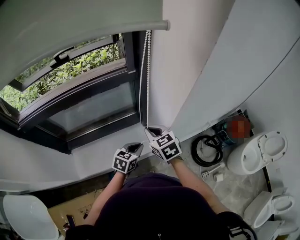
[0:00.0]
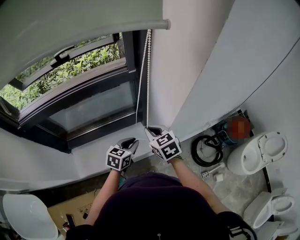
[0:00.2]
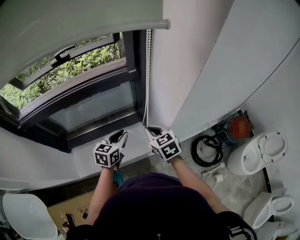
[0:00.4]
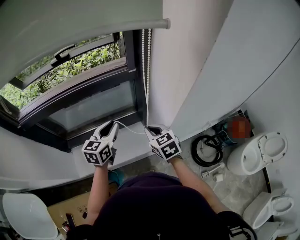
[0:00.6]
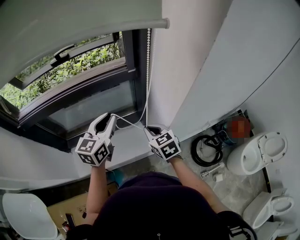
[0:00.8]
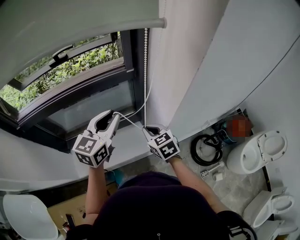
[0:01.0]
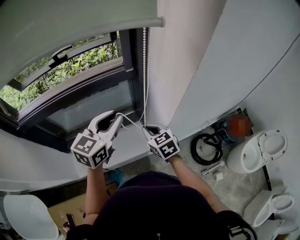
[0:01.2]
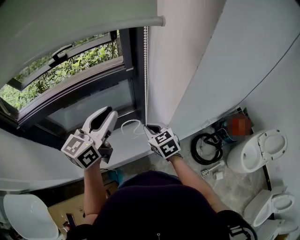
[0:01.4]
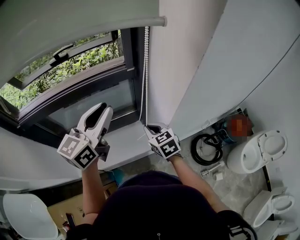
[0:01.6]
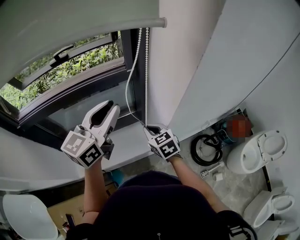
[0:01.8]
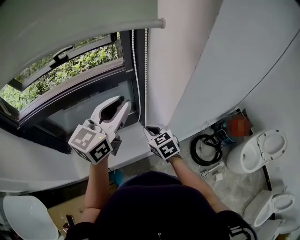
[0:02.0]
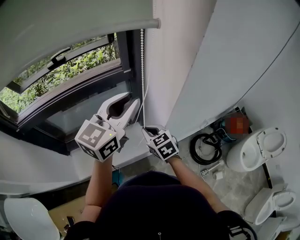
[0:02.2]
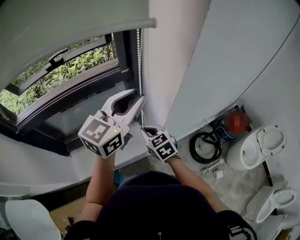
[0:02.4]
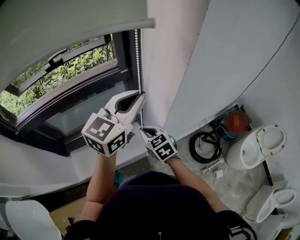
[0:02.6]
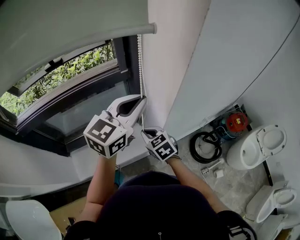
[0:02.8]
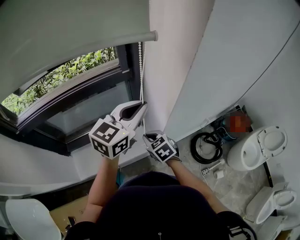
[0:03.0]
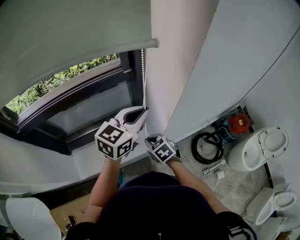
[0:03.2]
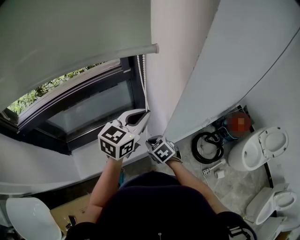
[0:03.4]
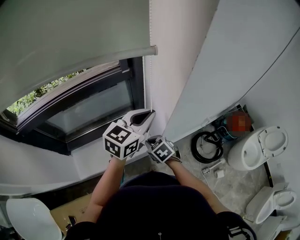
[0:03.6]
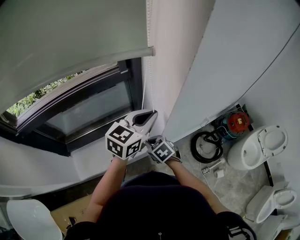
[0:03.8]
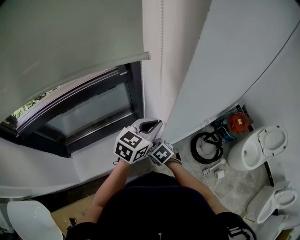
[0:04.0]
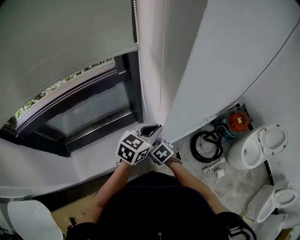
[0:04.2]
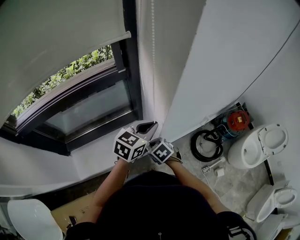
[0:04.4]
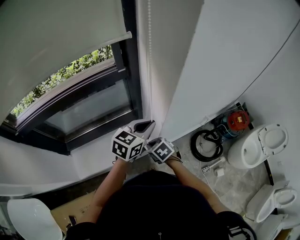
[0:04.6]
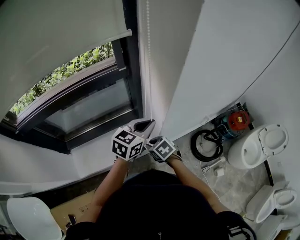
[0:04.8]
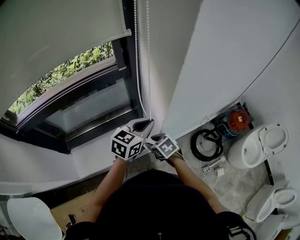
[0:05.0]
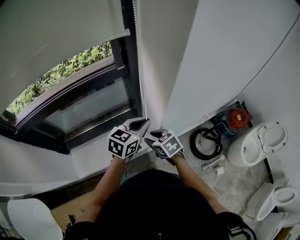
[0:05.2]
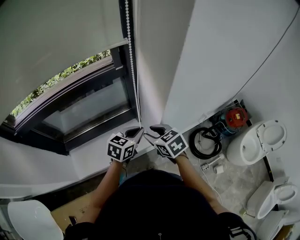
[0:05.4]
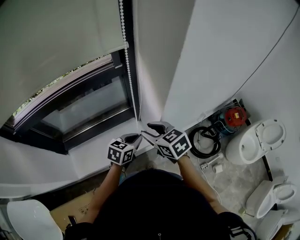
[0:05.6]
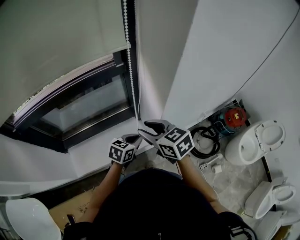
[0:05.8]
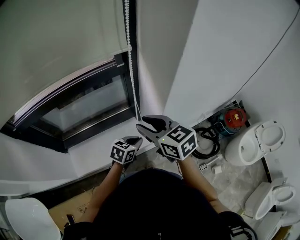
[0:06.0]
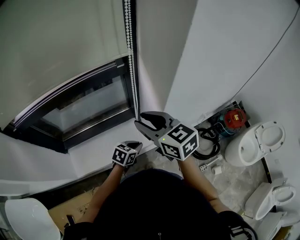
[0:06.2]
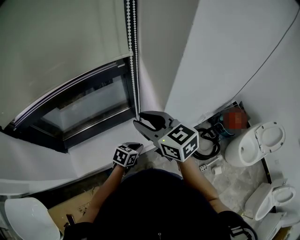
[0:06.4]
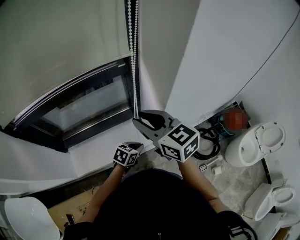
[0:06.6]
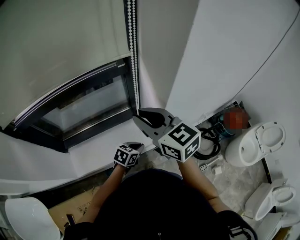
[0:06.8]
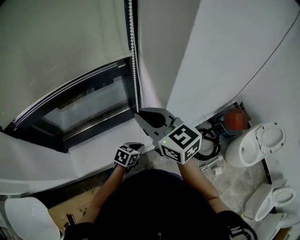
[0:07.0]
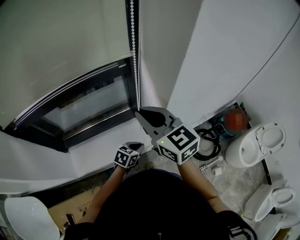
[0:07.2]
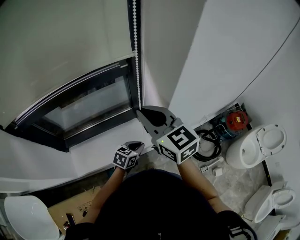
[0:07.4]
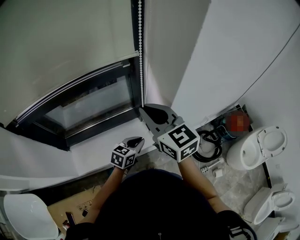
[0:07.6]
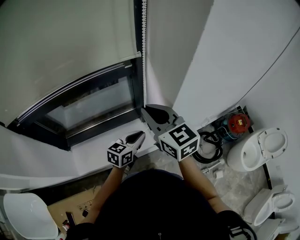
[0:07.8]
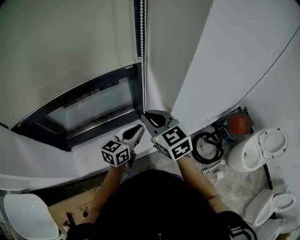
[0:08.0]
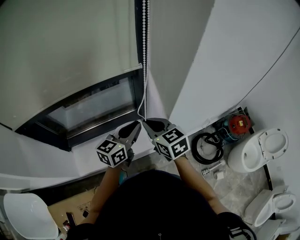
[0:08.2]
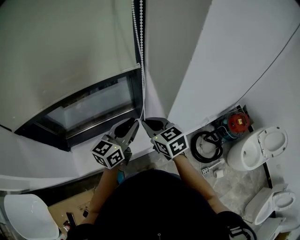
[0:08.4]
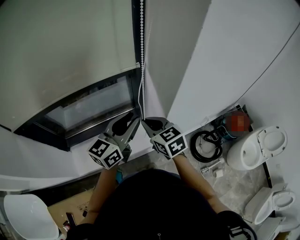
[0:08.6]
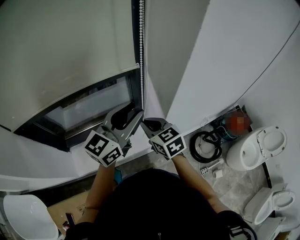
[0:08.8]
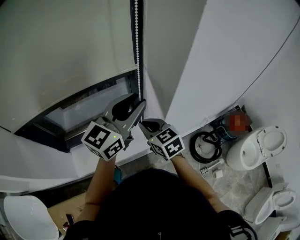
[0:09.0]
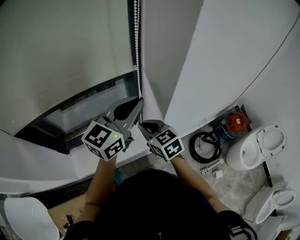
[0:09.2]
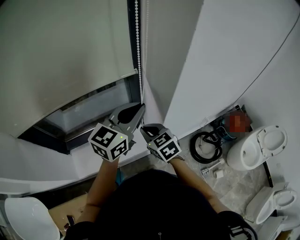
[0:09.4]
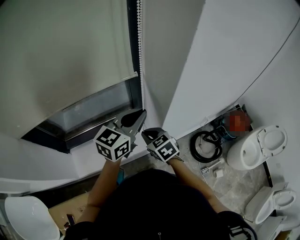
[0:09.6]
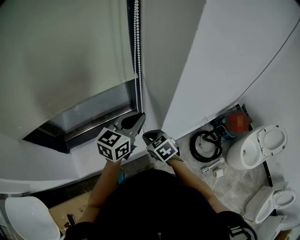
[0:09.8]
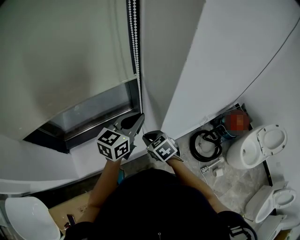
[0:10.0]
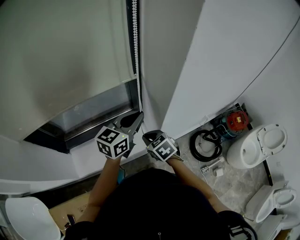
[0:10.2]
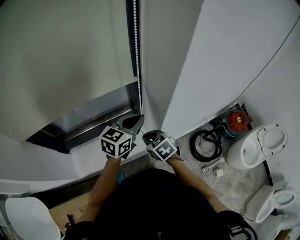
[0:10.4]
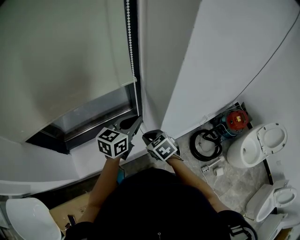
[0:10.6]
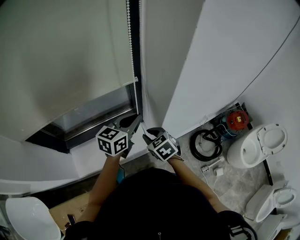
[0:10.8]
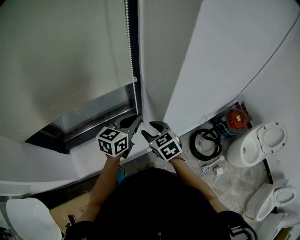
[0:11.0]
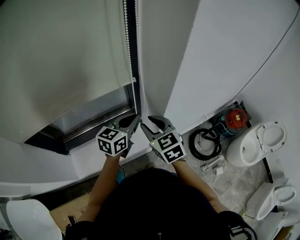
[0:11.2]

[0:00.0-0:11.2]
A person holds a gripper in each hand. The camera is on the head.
0:00.0 to 0:01.6: The left gripper goes approximately 30 cm upward, and tilts its fingers about 40 degrees upward.
0:01.6 to 0:03.2: The right gripper shifts approximately 10 cm downward, while the left gripper moves to the right and downward, about 15 cm, and changes its angle by some 20 degrees.
0:03.2 to 0:04.8: The left gripper is displaced downward by about 10 cm; the right gripper ends up approximately 5 cm from where it was.
0:04.8 to 0:06.4: The right gripper travels upward by about 30 cm, points its fingers roughly 40 degrees further upward, and opens up. The left gripper shifts about 20 cm downward and backward, and rotates about 30 degrees.
0:06.4 to 0:08.0: The right gripper closes its fingers. Meanwhile the left gripper is displaced upward by approximately 15 cm, and tips its fingers upward by roughly 30 degrees.
0:08.0 to 0:09.6: The left gripper shifts about 10 cm upward, and opens, then closes once more. Meanwhile the right gripper heads downward, covering about 15 cm, and swivels about 20 degrees.
0:09.6 to 0:11.2: The left gripper travels downward by some 10 cm; the right gripper moves upward, roughly 10 cm, and opens up.

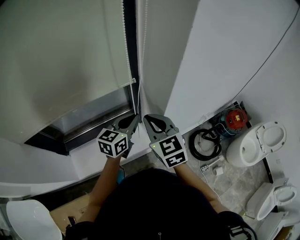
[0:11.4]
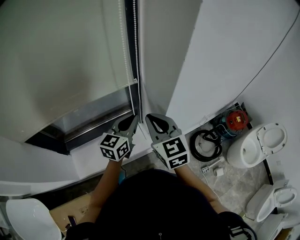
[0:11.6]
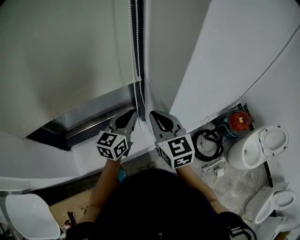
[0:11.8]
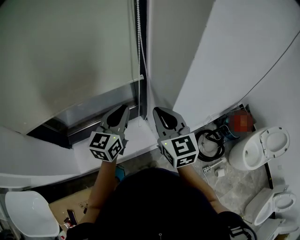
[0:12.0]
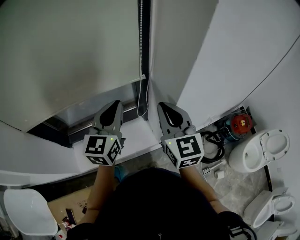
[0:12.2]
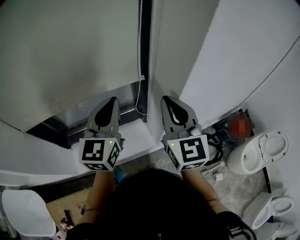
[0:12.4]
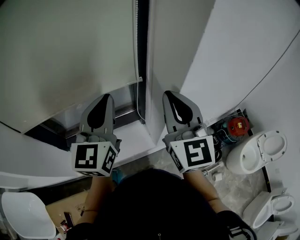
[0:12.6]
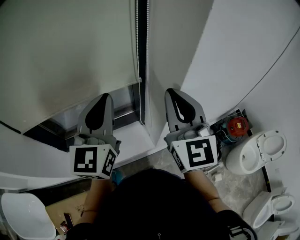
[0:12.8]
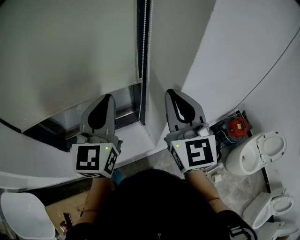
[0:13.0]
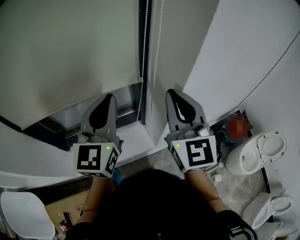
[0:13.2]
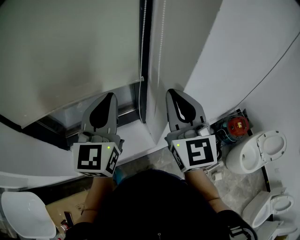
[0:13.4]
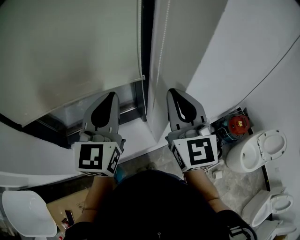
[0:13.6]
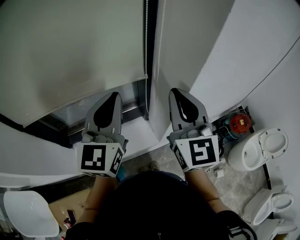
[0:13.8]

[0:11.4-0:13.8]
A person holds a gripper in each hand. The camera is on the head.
0:11.4 to 0:12.6: The right gripper heads upward, covering roughly 15 cm, and changes its angle by roughly 20 degrees. Meanwhile the left gripper heads upward and to the left, covering roughly 25 cm, and swivels about 40 degrees.
0:12.6 to 0:13.8: The grippers make only small movements.

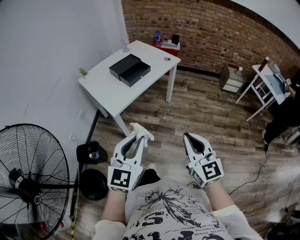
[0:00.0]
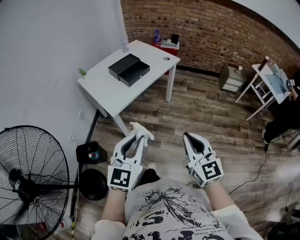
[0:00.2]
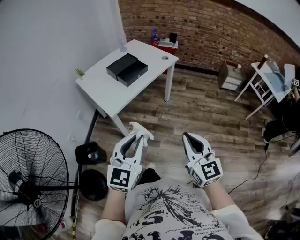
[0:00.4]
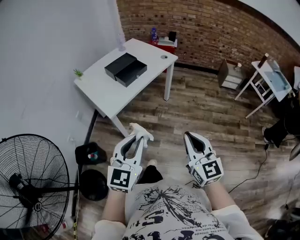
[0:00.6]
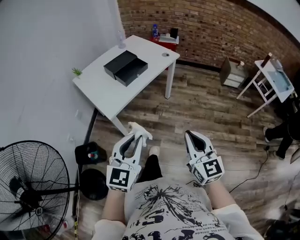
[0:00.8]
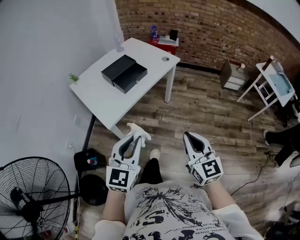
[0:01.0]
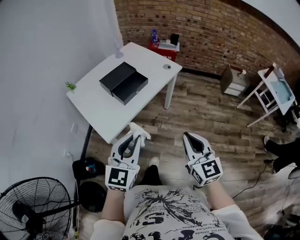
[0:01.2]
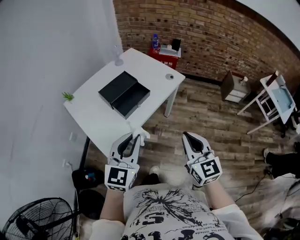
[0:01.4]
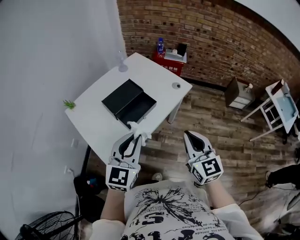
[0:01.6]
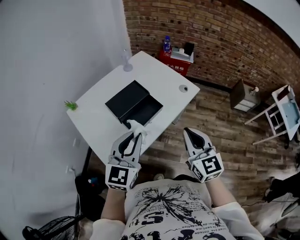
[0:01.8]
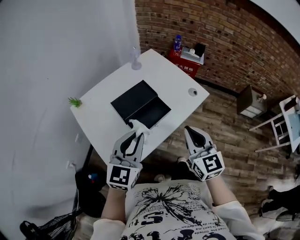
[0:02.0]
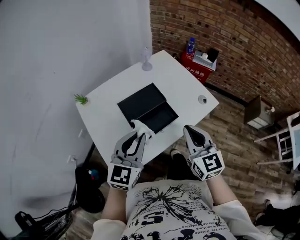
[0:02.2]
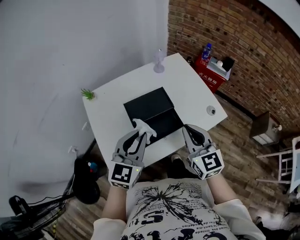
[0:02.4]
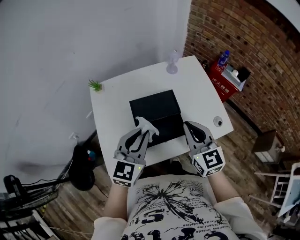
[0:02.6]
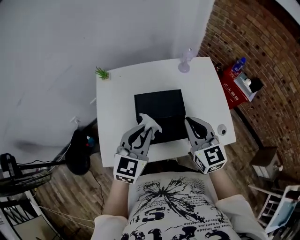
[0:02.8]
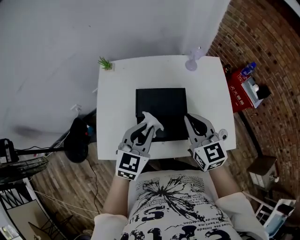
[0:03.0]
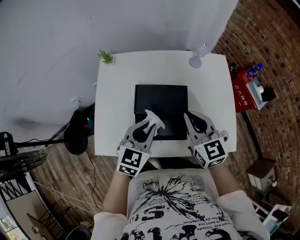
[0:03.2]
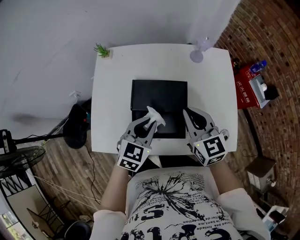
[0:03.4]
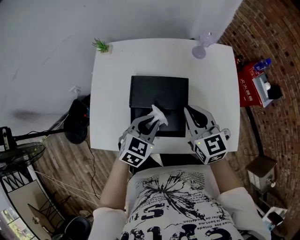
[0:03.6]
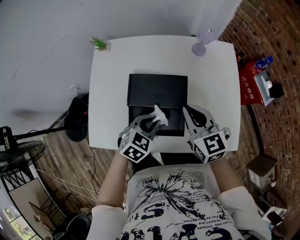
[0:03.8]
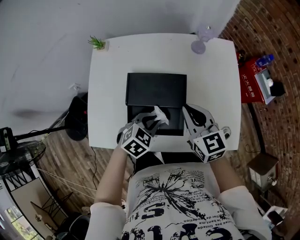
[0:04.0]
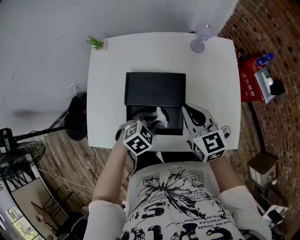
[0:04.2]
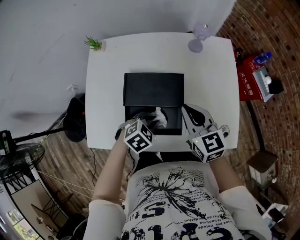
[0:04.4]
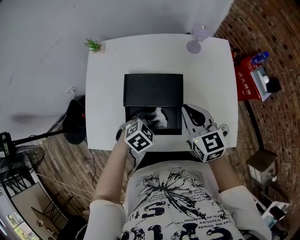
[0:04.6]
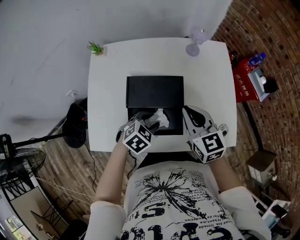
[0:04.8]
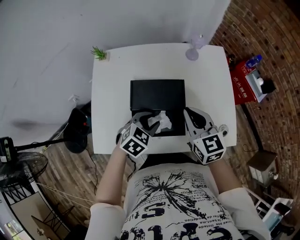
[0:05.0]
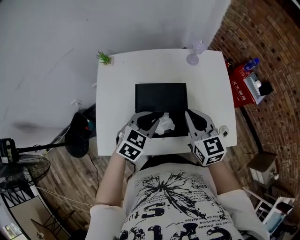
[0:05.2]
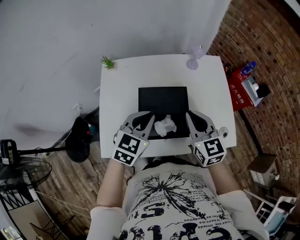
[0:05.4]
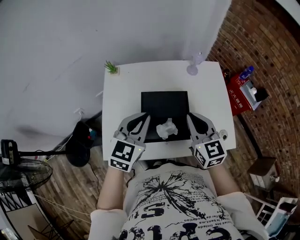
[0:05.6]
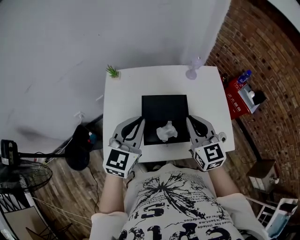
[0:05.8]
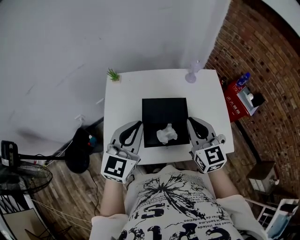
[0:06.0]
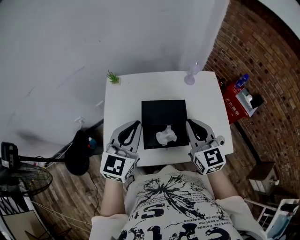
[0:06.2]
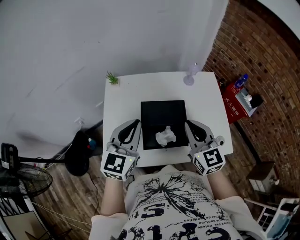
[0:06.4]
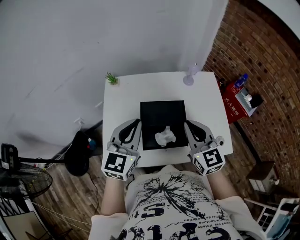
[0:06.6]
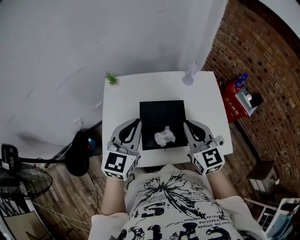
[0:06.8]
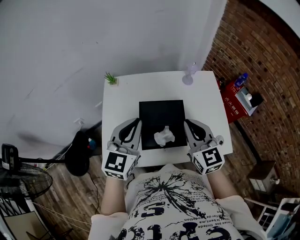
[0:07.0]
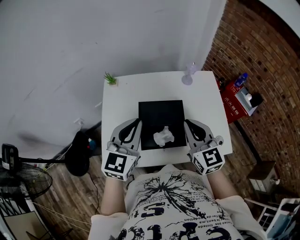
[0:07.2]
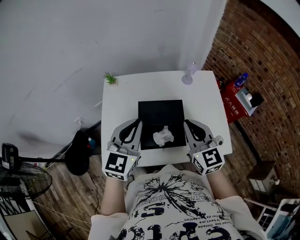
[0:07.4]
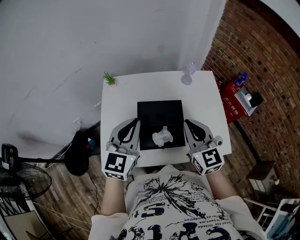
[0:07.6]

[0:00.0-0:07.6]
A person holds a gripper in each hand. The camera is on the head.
0:00.0 to 0:01.6: The pair of grippers is taken forward, approximately 50 cm.
0:01.6 to 0:03.0: The left gripper ends up some 30 cm from where it was, and turns by approximately 40 degrees, while the right gripper moves roughly 40 cm, and rotates approximately 50 degrees.
0:03.0 to 0:04.6: The left gripper goes roughly 20 cm downward, and angles its fingers downward, by approximately 40 degrees, while the right gripper heads downward and forward, covering approximately 10 cm.
0:04.6 to 0:06.0: The right gripper moves upward and backward, about 20 cm; the left gripper is displaced upward by some 35 cm, and tilts its fingers approximately 50 degrees upward.
0:06.0 to 0:07.6: The grippers stay close to where they were, moving slightly.

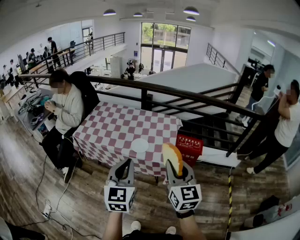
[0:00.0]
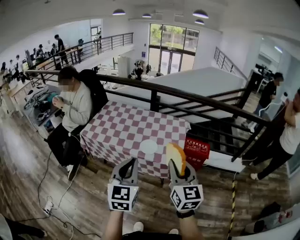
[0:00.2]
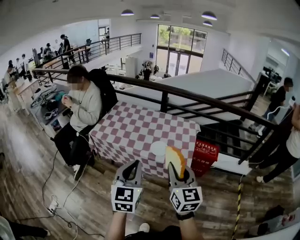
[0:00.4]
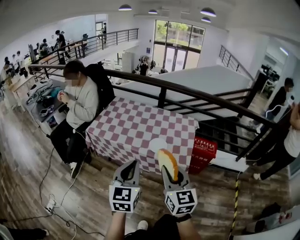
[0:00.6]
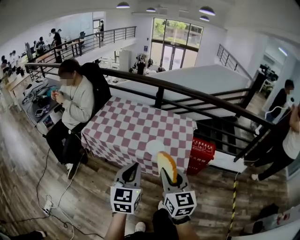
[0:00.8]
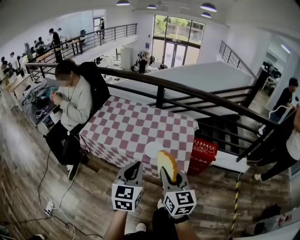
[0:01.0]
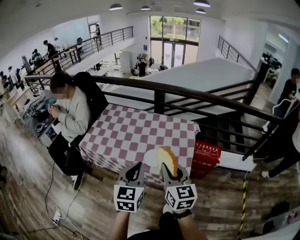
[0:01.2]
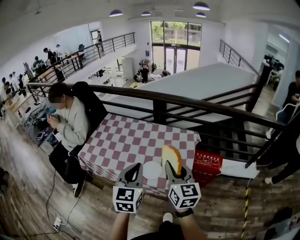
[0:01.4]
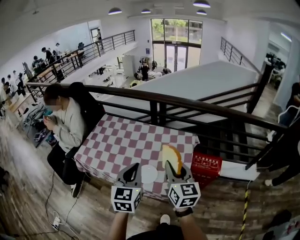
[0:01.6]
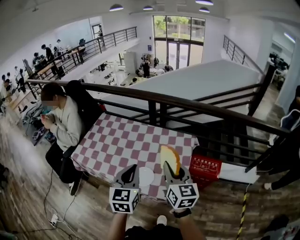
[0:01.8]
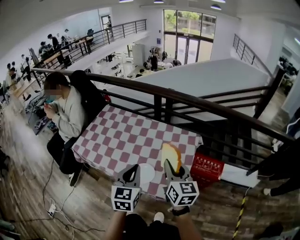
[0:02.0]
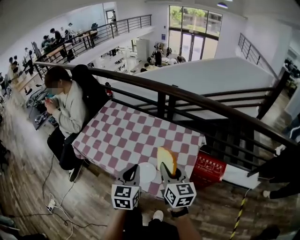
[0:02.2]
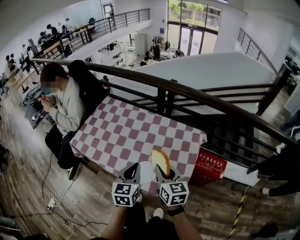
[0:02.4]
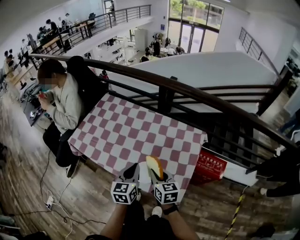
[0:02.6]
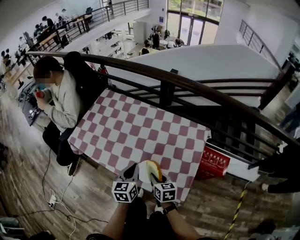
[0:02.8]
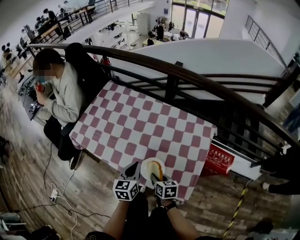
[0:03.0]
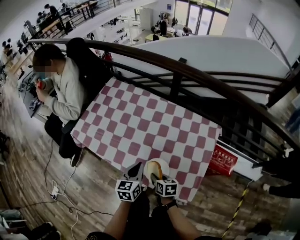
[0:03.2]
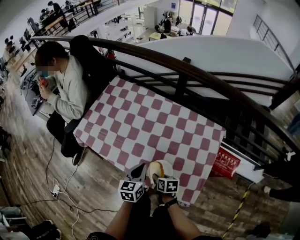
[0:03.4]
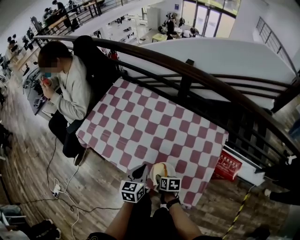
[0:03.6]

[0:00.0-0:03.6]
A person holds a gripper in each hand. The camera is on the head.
0:00.0 to 0:01.8: Both grippers travel together forward, roughly 30 cm.
0:01.8 to 0:03.6: The left gripper heads downward and forward, covering about 25 cm, and changes its angle by some 20 degrees. The right gripper moves downward, some 40 cm, and tips its fingers downward by approximately 50 degrees.
